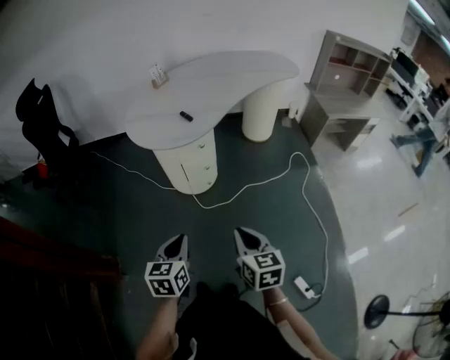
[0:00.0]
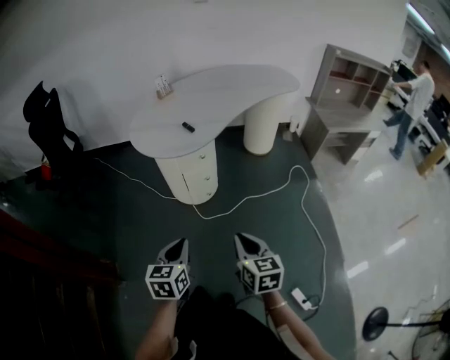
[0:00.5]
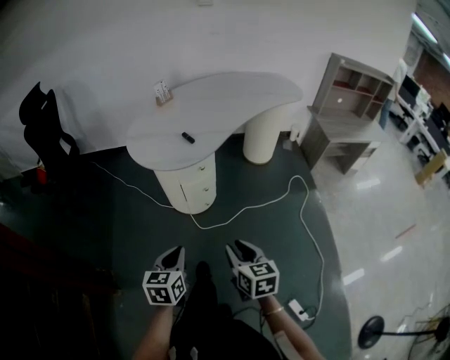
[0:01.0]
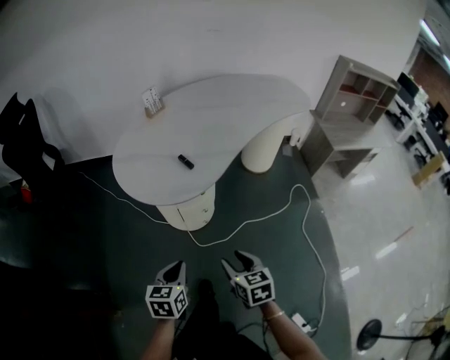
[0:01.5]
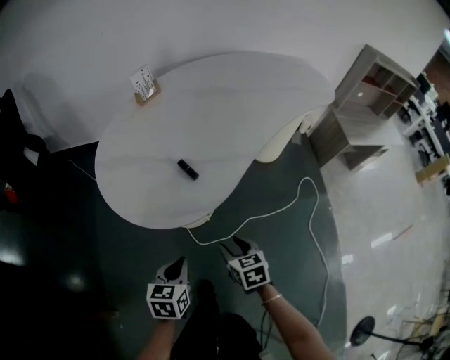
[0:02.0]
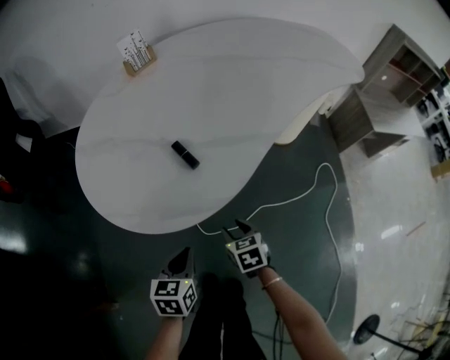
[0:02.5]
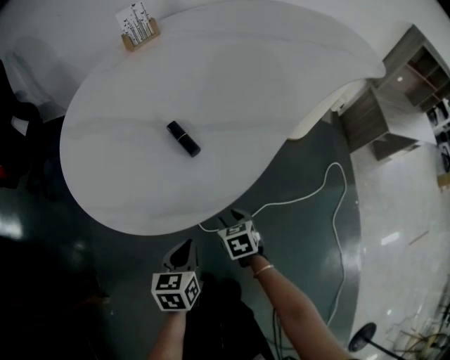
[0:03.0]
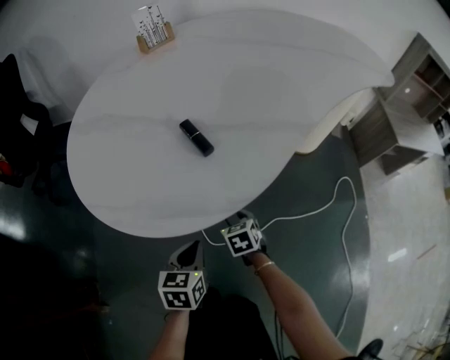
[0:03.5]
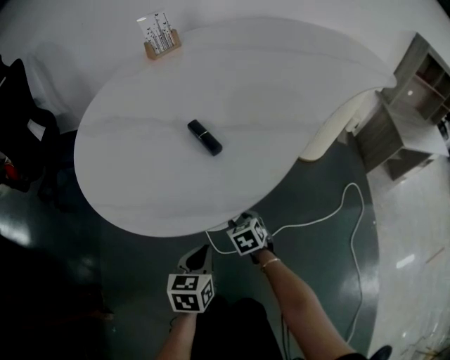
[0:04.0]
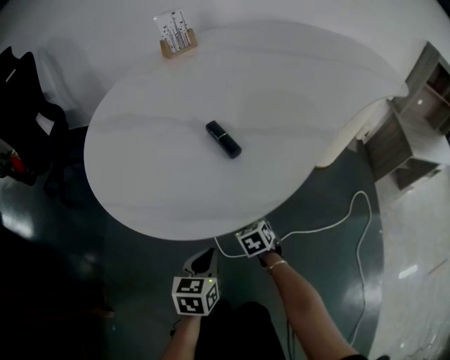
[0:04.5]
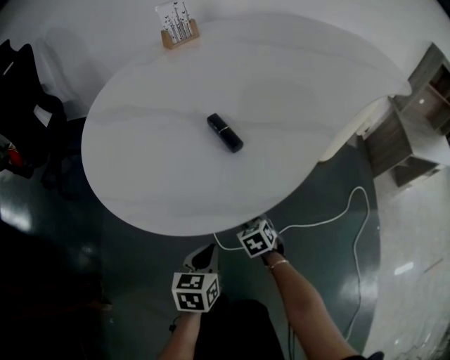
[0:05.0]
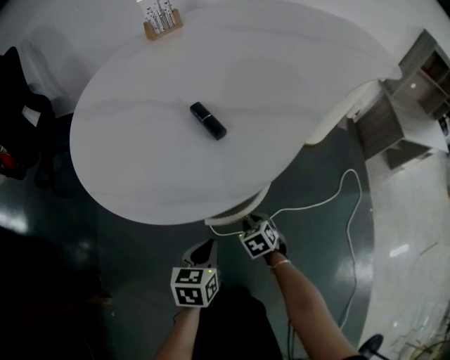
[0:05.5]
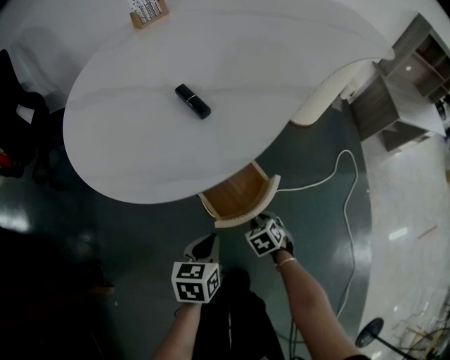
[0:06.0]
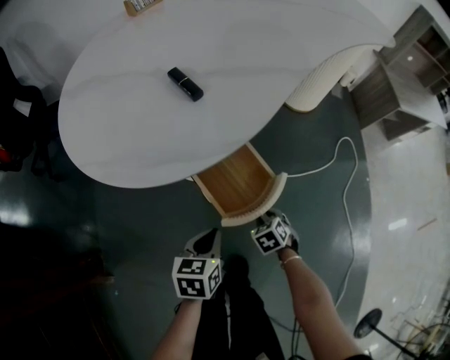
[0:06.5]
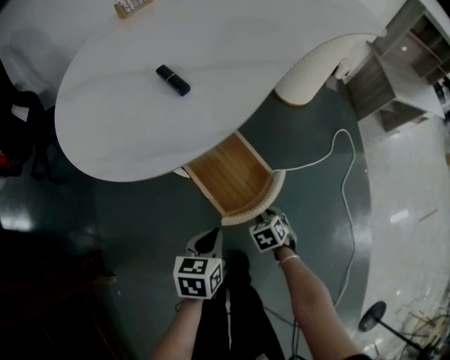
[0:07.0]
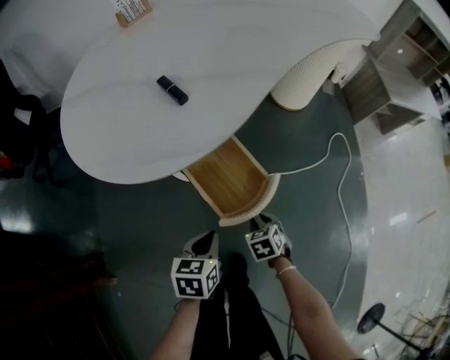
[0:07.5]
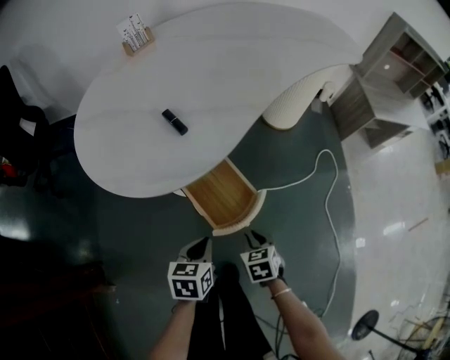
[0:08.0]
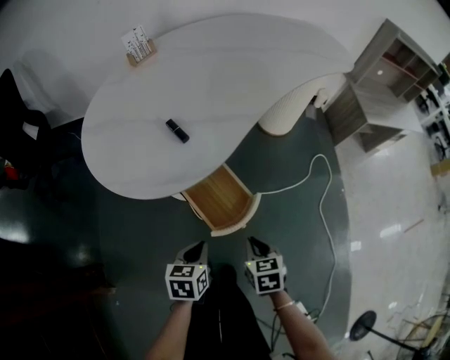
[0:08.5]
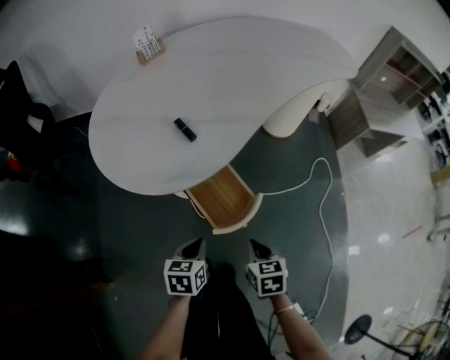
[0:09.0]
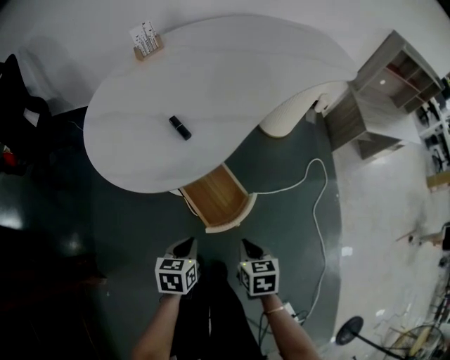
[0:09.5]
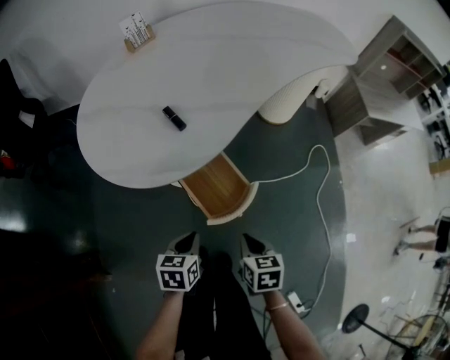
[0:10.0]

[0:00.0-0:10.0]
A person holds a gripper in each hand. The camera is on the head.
0:00.0 to 0:02.0: The grippers both shift forward and downward by some 35 cm. The right gripper changes its angle by approximately 20 degrees, and opens.
0:02.0 to 0:04.0: The grippers both shift downward and forward by some 25 cm.
0:04.0 to 0:06.0: The left gripper heads backward, covering about 5 cm. Meanwhile the right gripper heads backward and to the right, covering some 15 cm.
0:06.0 to 0:08.0: The left gripper is displaced upward by roughly 5 cm. The right gripper shifts approximately 15 cm upward and backward.
0:08.0 to 0:10.0: The right gripper heads upward, covering about 10 cm.

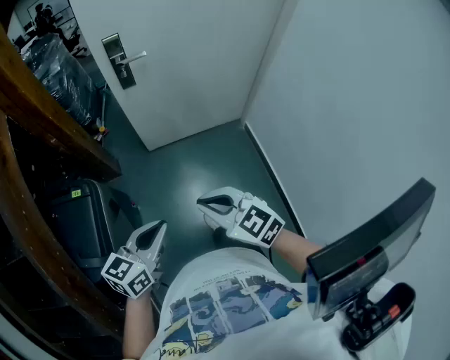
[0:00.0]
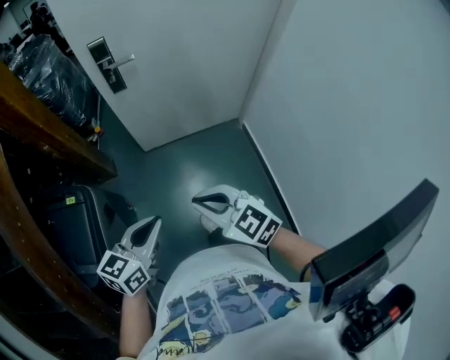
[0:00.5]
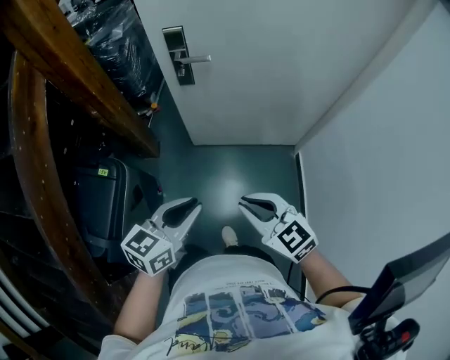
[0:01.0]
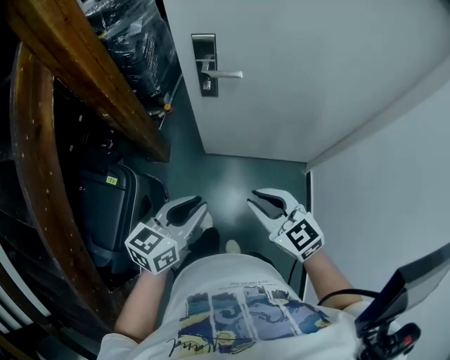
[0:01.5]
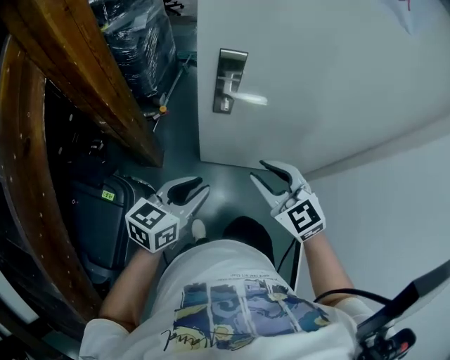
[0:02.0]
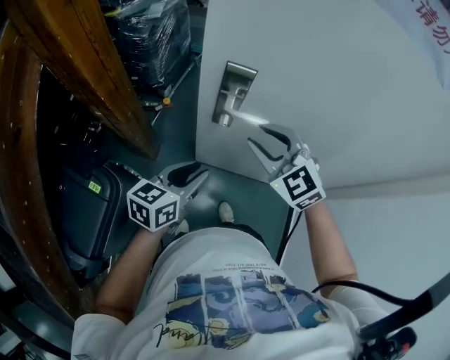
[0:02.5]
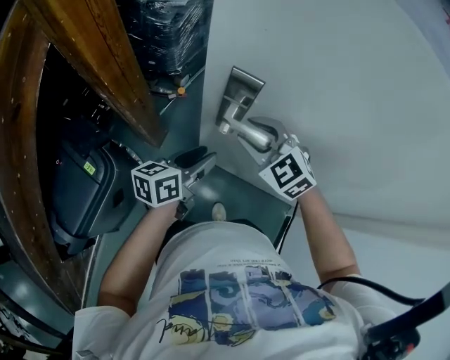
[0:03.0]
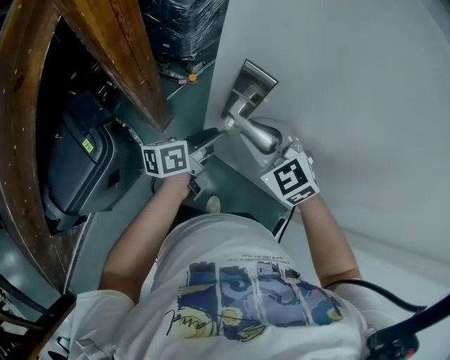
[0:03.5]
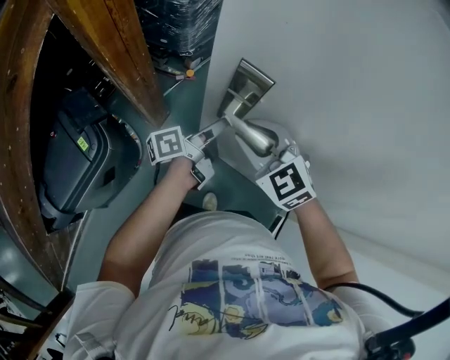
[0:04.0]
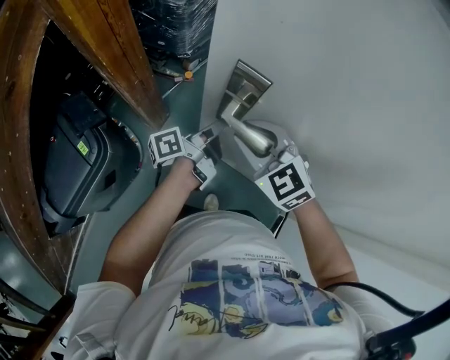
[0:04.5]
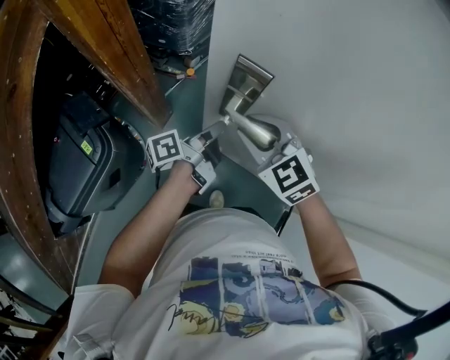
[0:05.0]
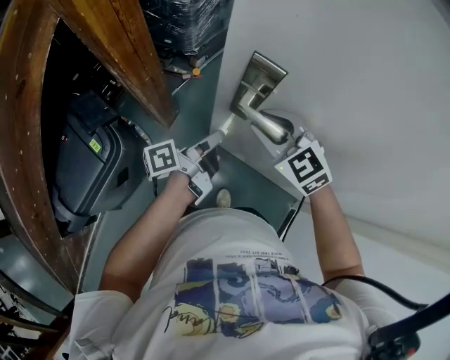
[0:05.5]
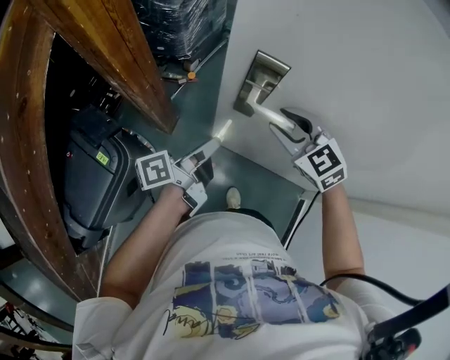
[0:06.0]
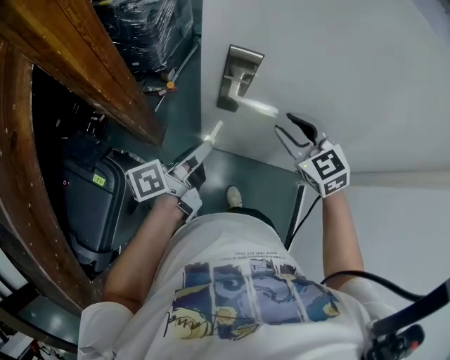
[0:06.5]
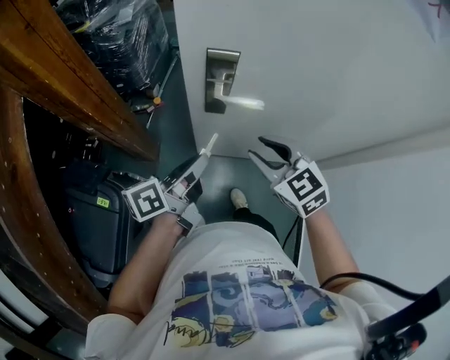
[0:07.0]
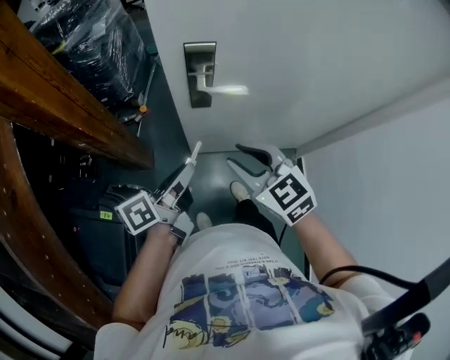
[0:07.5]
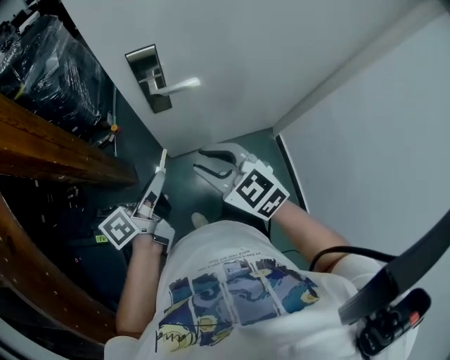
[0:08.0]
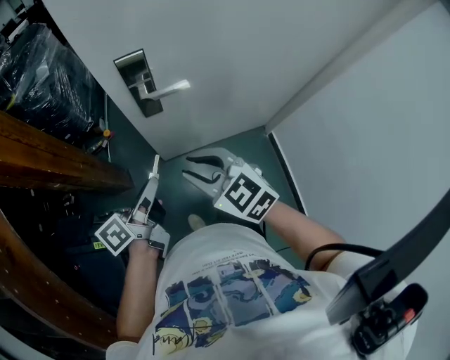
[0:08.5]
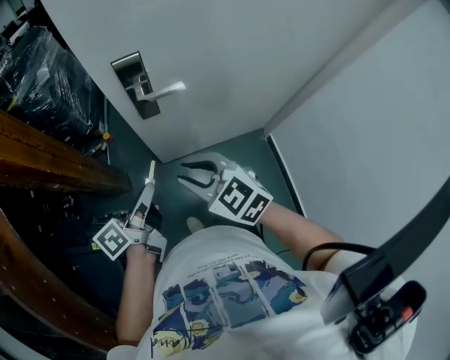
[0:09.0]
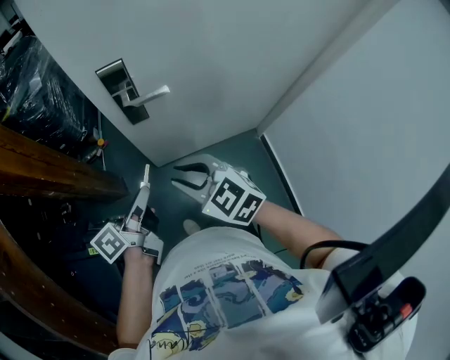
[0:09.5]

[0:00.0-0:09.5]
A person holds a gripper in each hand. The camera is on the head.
0:00.0 to 0:02.0: The two grippers go some 40 cm forward. The right gripper opens up. The left gripper opens.
0:02.0 to 0:04.0: The left gripper moves about 25 cm, and rolls counterclockwise, seen from behind, by approximately 60 degrees. The right gripper changes place by some 20 cm, and changes its angle by some 30 degrees.
0:04.0 to 0:05.5: The left gripper is displaced backward by roughly 5 cm, and closes up.
0:05.5 to 0:07.5: The left gripper moves some 15 cm, and rotates roughly 30 degrees. The right gripper ends up roughly 15 cm from where it was, and swivels roughly 40 degrees.
0:07.5 to 0:09.5: The right gripper moves backward, approximately 5 cm.

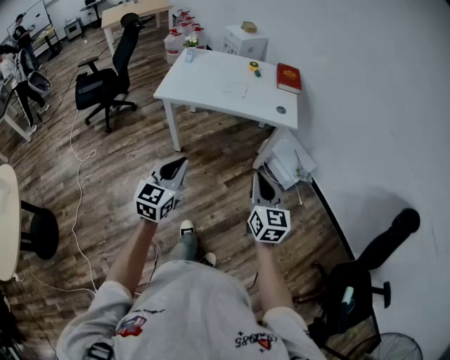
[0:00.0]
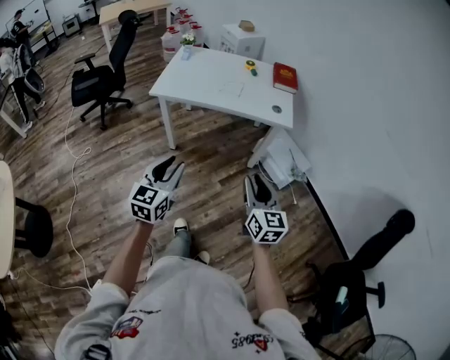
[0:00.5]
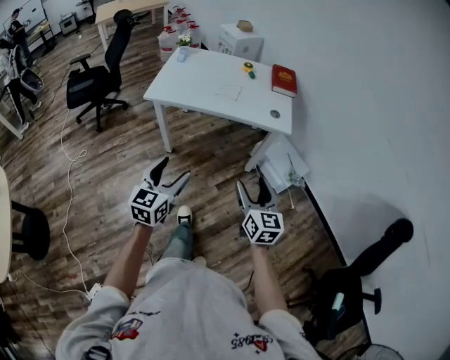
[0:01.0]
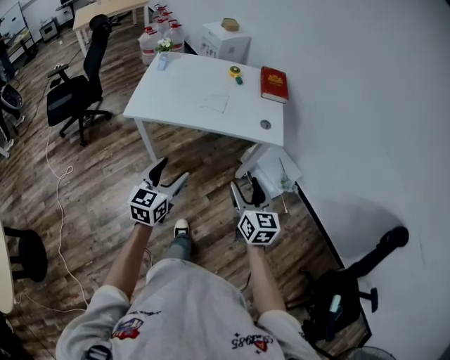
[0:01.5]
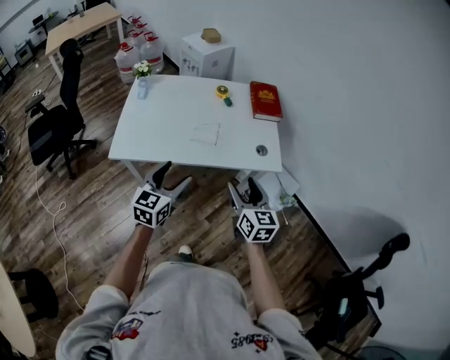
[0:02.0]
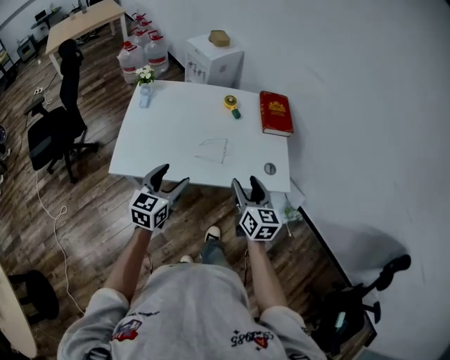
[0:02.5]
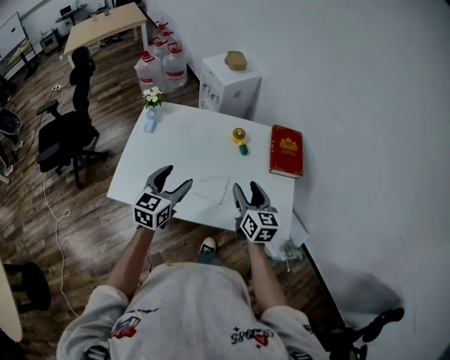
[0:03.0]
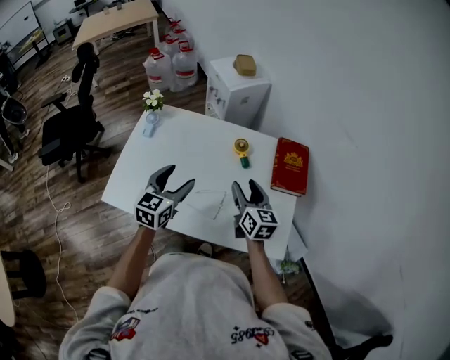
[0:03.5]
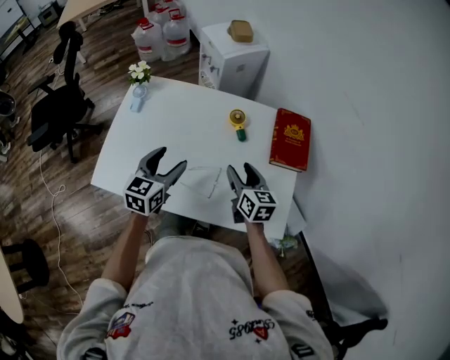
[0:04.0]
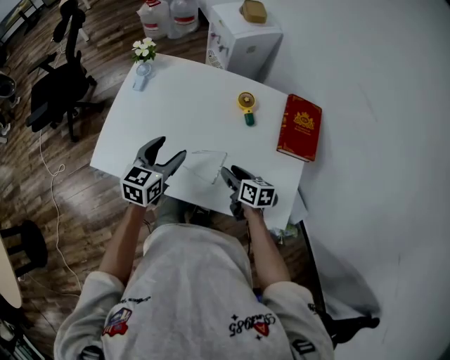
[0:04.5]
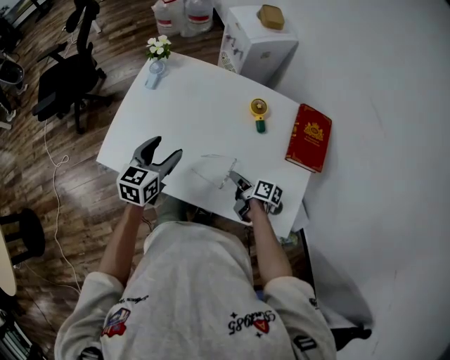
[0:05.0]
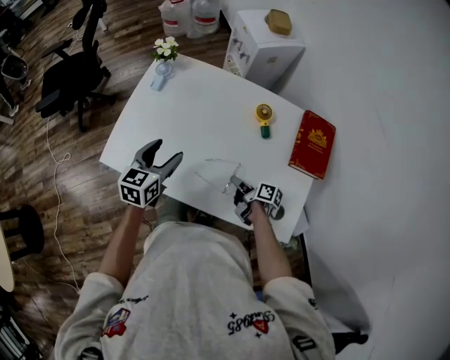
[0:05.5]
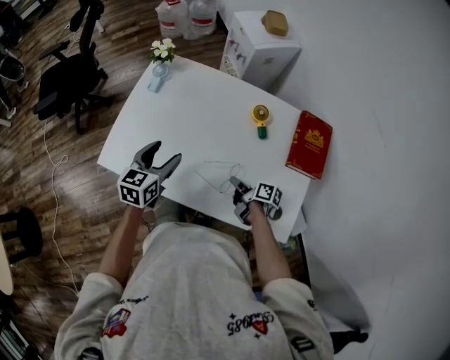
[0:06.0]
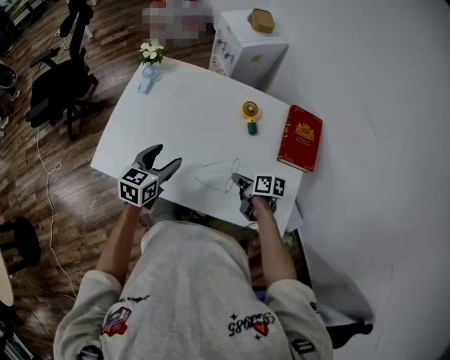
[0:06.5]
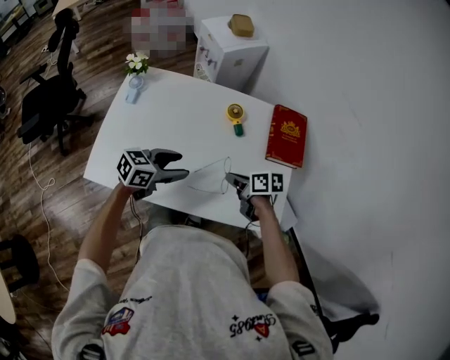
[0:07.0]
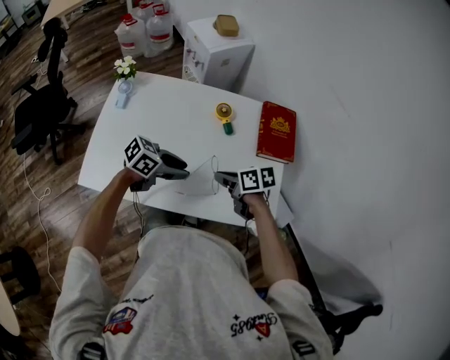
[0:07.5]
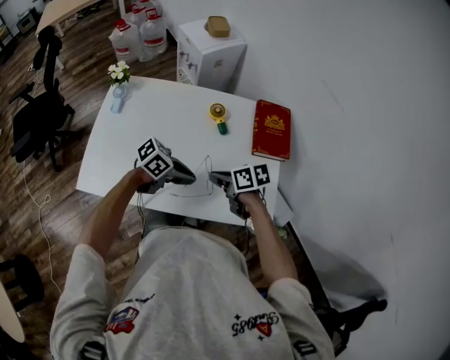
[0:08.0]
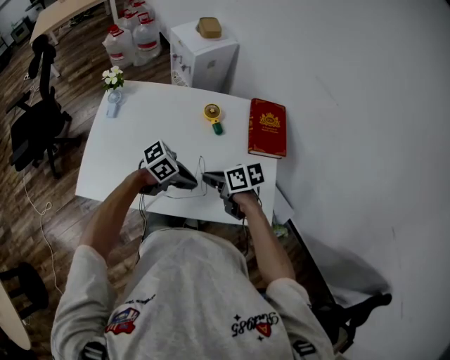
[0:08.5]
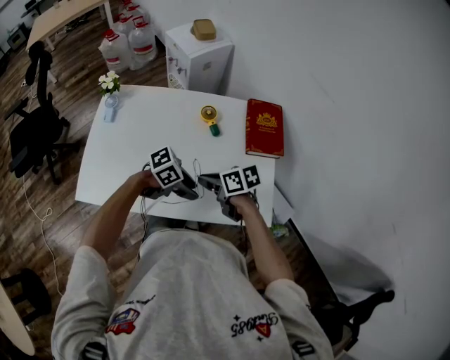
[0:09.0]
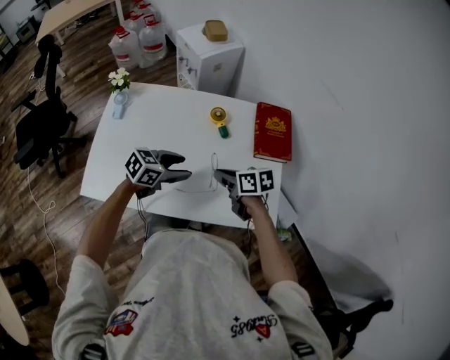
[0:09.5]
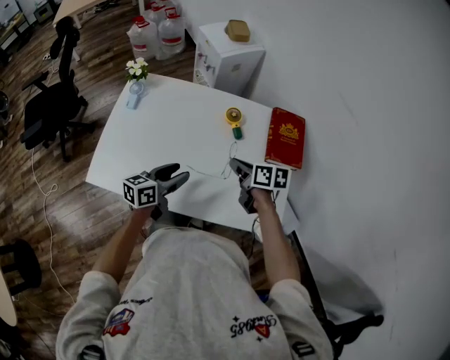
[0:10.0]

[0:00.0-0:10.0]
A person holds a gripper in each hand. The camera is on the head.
0:00.0 to 0:02.0: Both grippers are carried forward, some 40 cm. The right gripper opens. The left gripper opens up.
0:02.0 to 0:04.0: The grippers both shift forward by about 40 cm.
0:04.0 to 0:06.0: The right gripper heads downward, covering approximately 15 cm, twists approximately 40 degrees clockwise, seen from behind, and closes. Meanwhile the left gripper travels to the left and downward by approximately 10 cm.
0:06.0 to 0:08.0: The right gripper goes approximately 15 cm upward, and changes its angle by about 30 degrees; the left gripper ends up roughly 20 cm from where it was, rotates about 70 degrees, and closes up.
0:08.0 to 0:10.0: The right gripper changes place by about 5 cm, while the left gripper changes place by approximately 10 cm, changes its angle by roughly 50 degrees, and opens up.